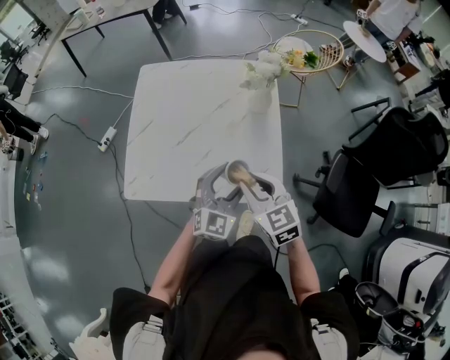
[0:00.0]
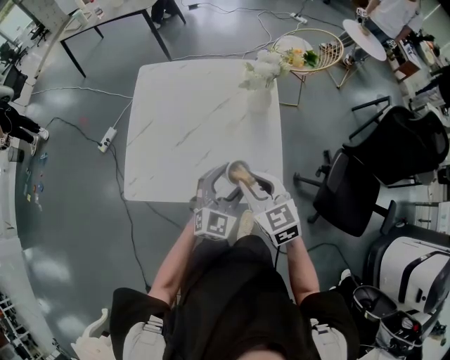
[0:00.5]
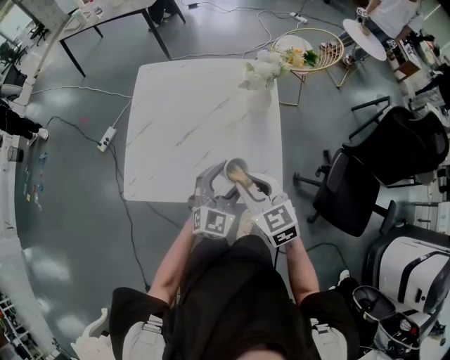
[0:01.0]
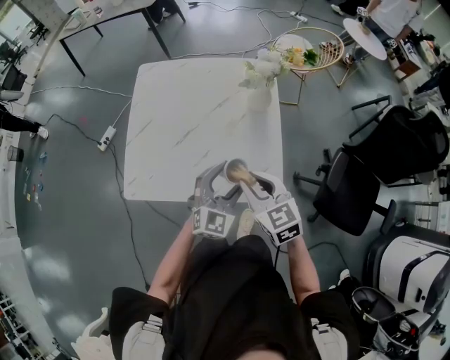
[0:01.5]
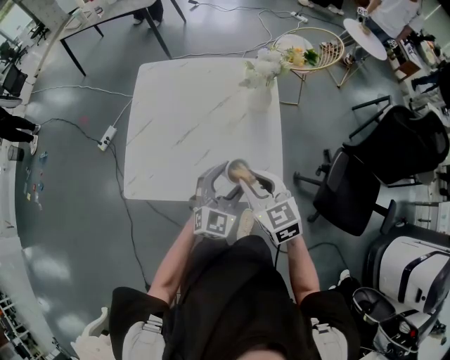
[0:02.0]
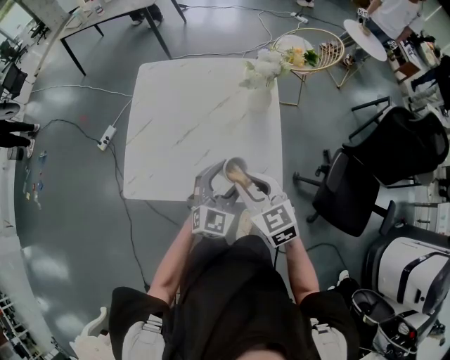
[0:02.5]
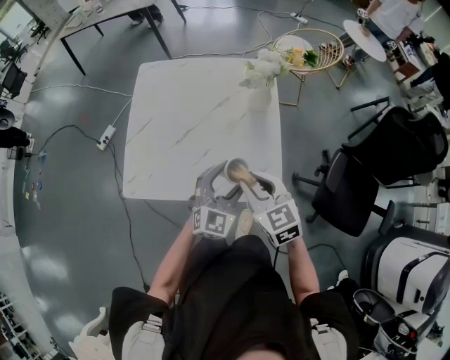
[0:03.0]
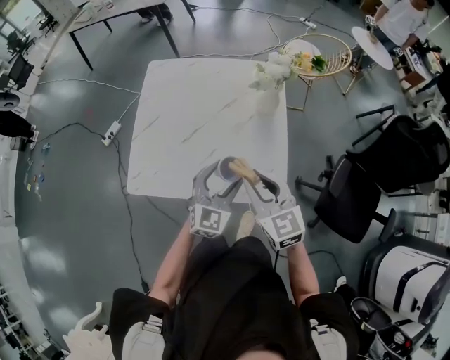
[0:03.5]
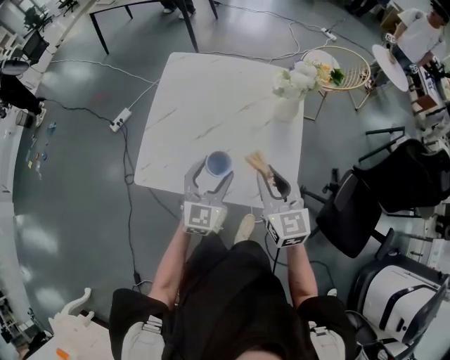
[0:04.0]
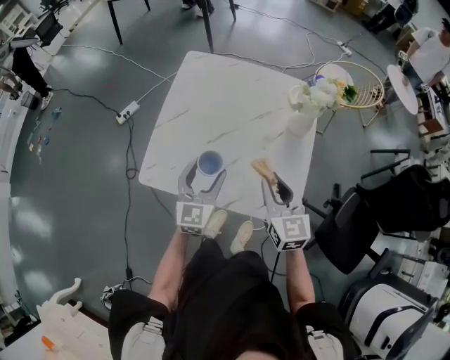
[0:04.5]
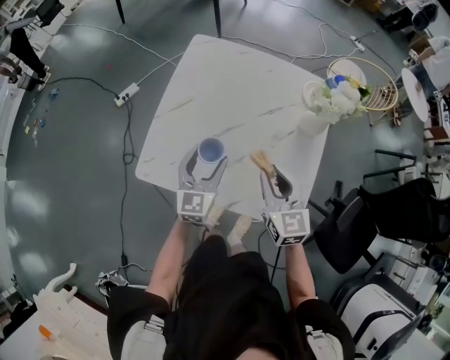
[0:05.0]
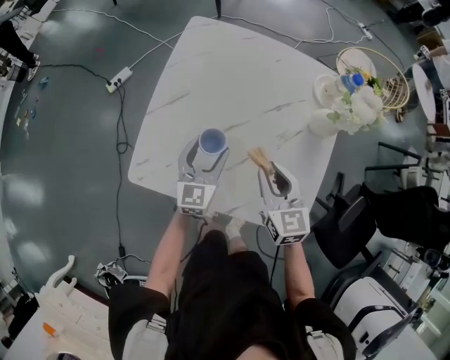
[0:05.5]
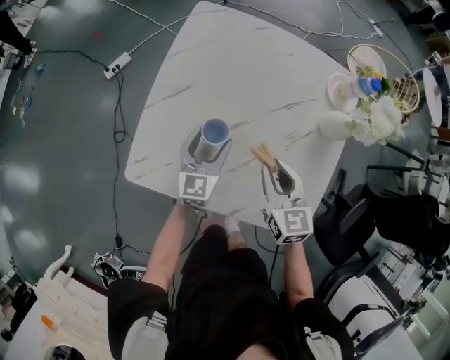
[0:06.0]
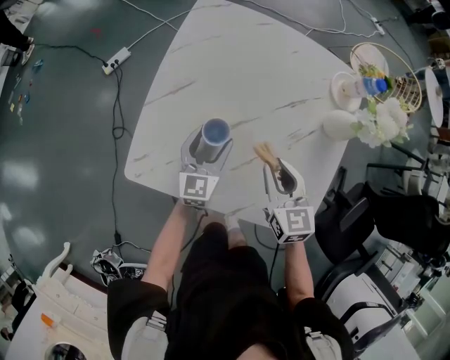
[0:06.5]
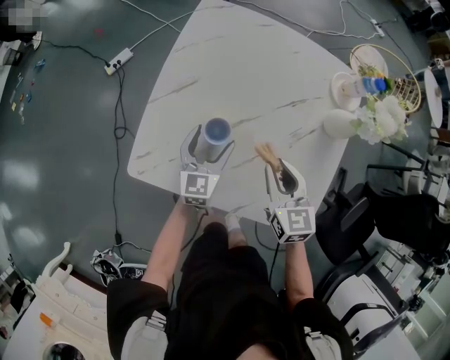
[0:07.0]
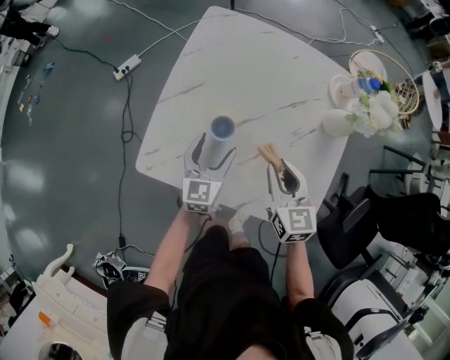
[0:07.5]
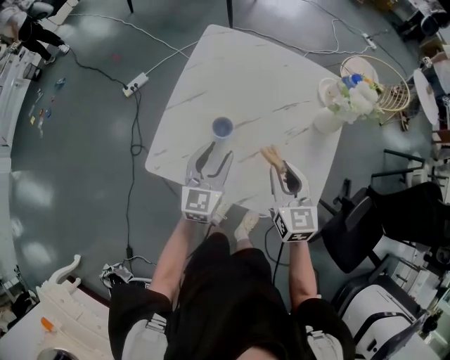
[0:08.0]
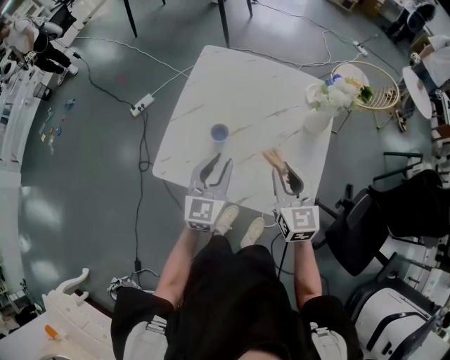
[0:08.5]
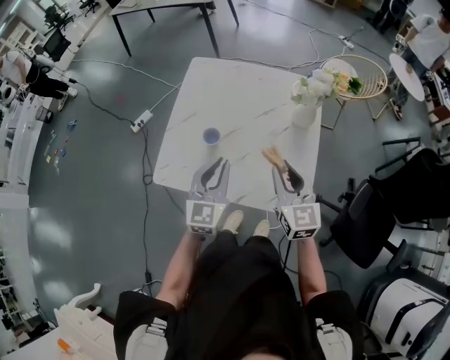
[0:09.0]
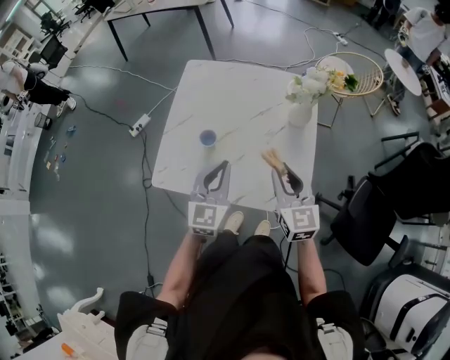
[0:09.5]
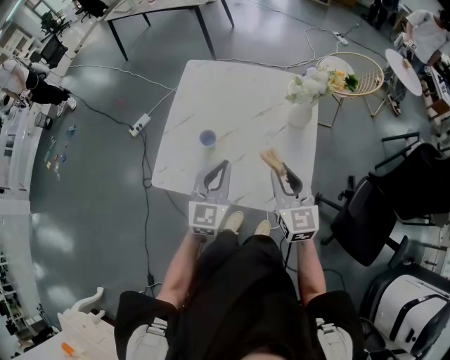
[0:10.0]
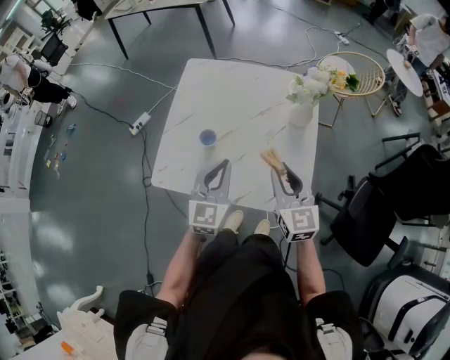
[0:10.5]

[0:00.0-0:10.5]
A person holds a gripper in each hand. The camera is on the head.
0:00.0 to 0:02.0: Both grippers stay about where they are.
0:02.0 to 0:04.0: The left gripper moves to the left, some 10 cm, and swivels roughly 20 degrees.
0:04.0 to 0:06.5: The right gripper travels downward and forward by some 20 cm; the left gripper shifts about 25 cm downward, forward and to the left, and swivels roughly 20 degrees.
0:06.5 to 0:08.5: The grippers both shift upward and backward by roughly 20 cm. The left gripper closes its fingers.
0:08.5 to 0:10.5: The right gripper shifts by about 5 cm; the left gripper shifts roughly 5 cm to the right.

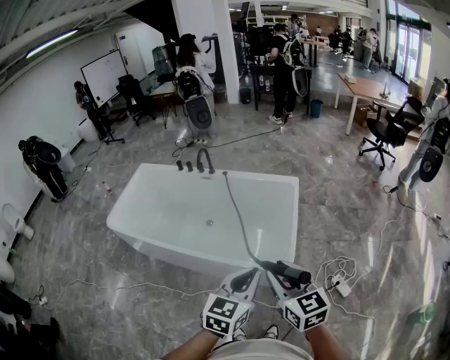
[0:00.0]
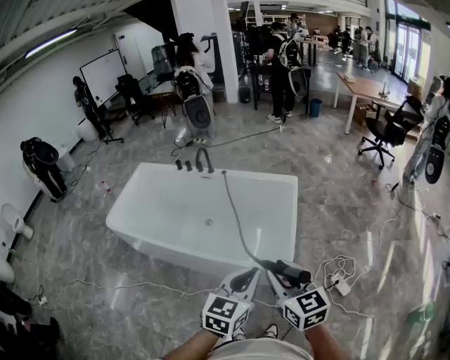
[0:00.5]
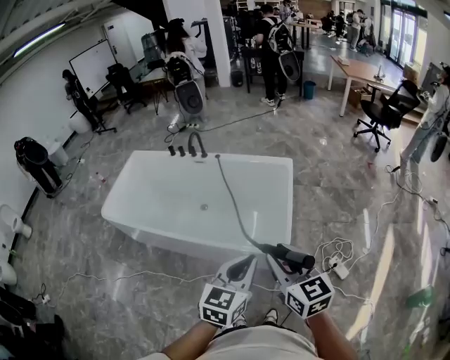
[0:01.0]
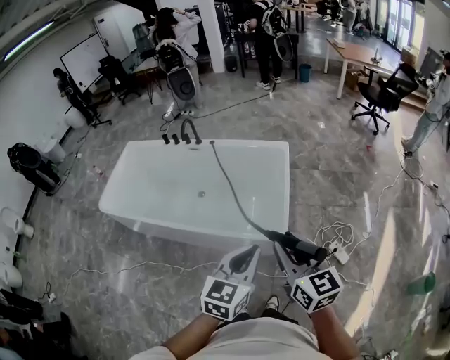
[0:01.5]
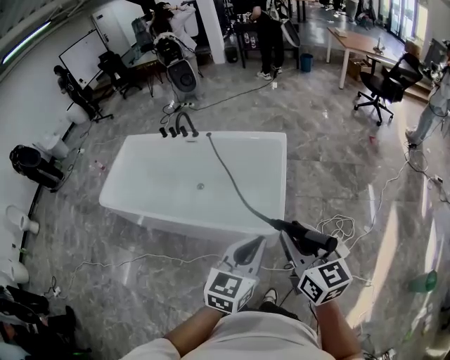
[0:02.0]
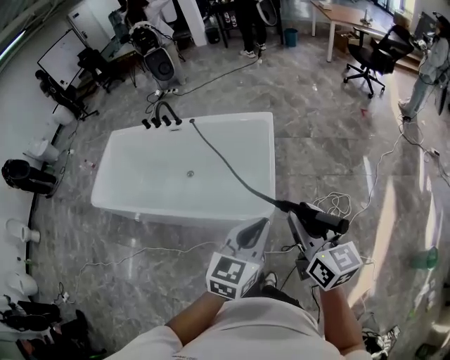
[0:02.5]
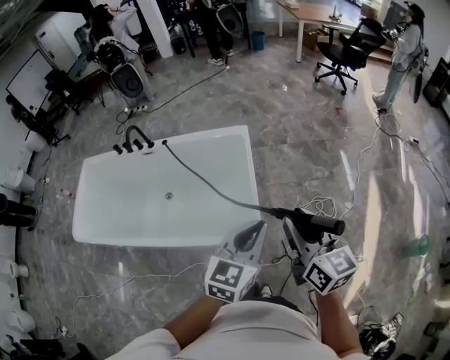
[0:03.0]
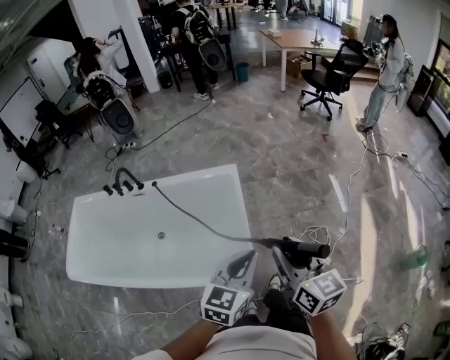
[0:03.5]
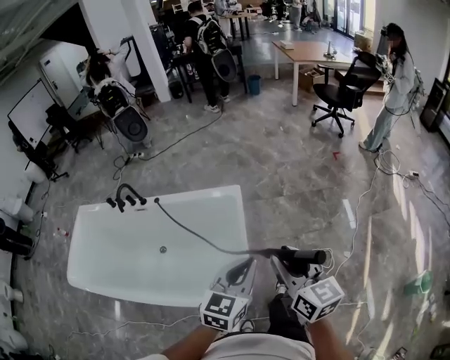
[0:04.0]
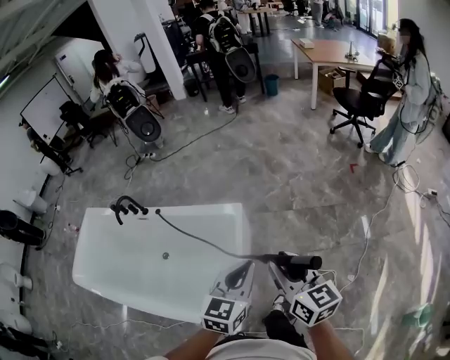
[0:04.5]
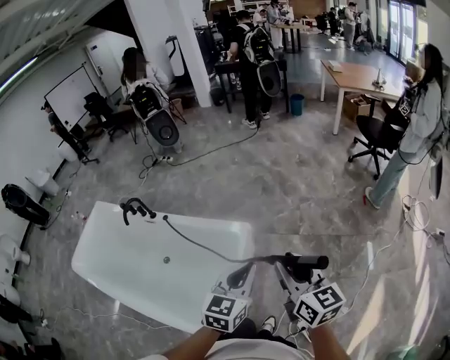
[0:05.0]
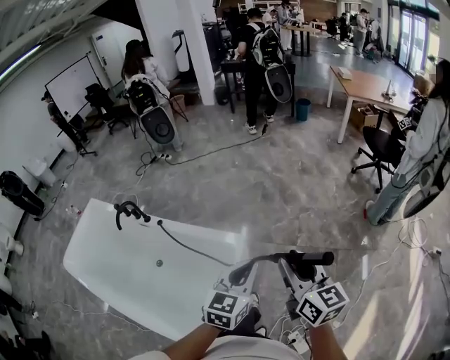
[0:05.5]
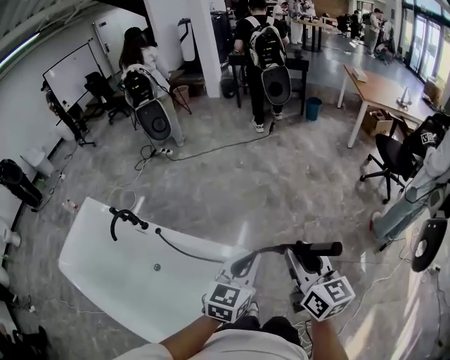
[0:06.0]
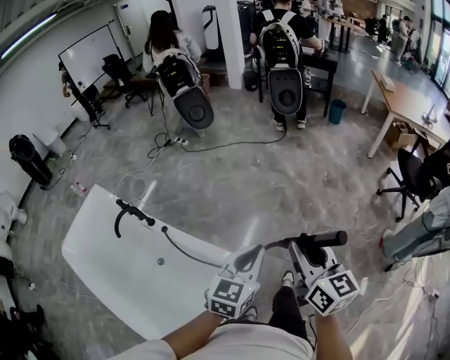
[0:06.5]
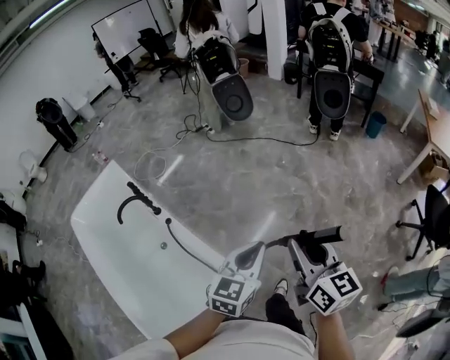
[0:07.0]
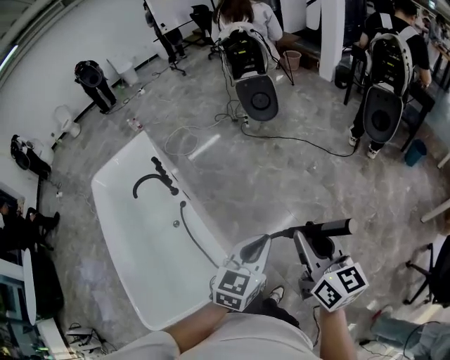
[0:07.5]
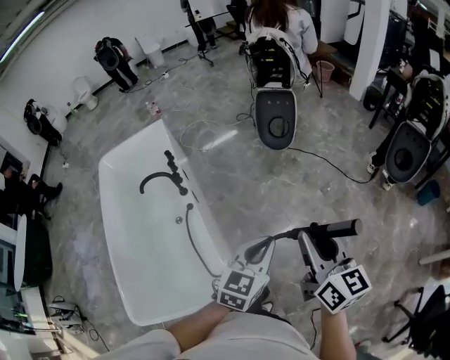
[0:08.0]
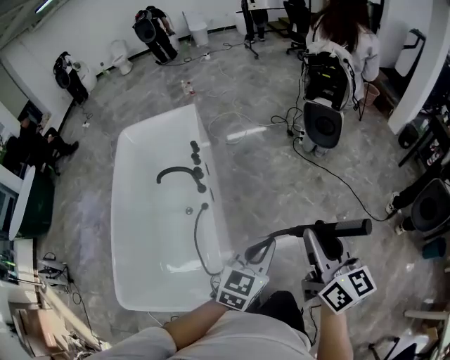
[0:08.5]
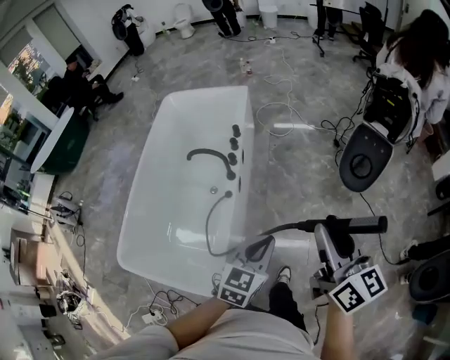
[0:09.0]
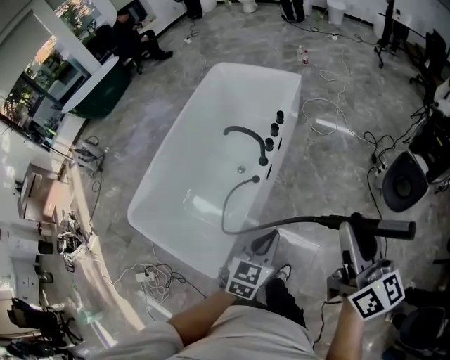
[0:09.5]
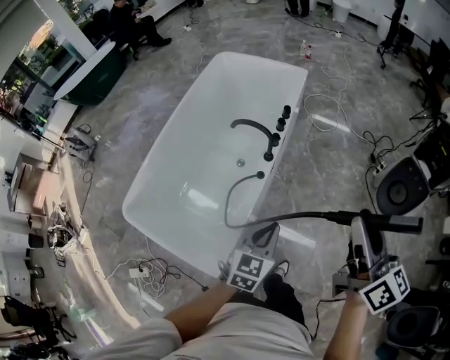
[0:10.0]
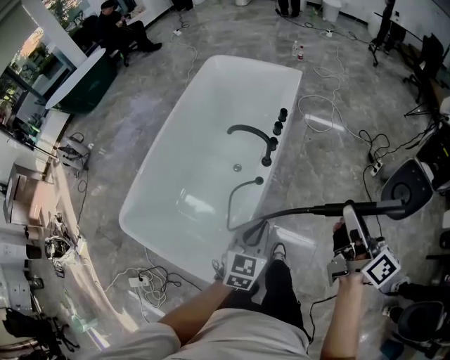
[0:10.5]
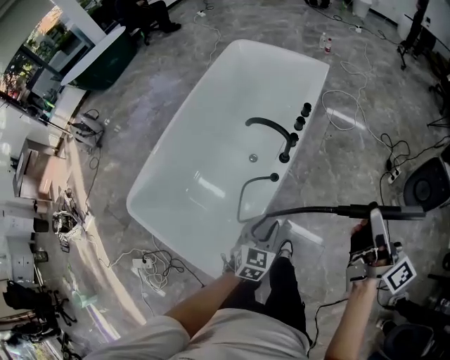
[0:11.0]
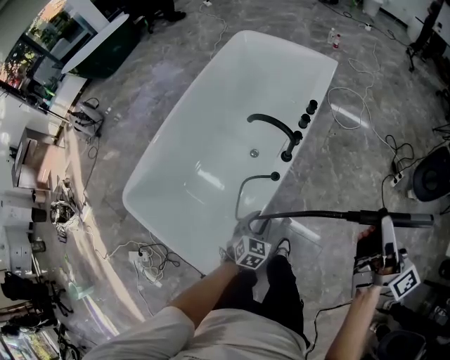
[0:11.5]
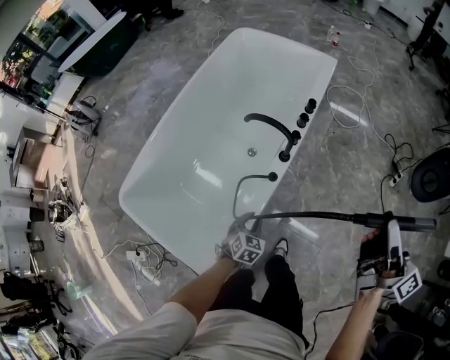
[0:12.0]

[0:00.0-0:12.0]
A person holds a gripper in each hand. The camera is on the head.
0:00.0 to 0:02.0: Both grippers move to the right, about 10 cm.
0:02.0 to 0:04.0: Both grippers move forward, roughly 25 cm.
0:04.0 to 0:06.0: Both grippers are carried forward, some 40 cm.
0:06.0 to 0:08.0: The left gripper ends up some 35 cm from where it was, and rotates some 40 degrees; the right gripper moves some 40 cm, and changes its angle by some 50 degrees.
0:08.0 to 0:10.0: The left gripper changes place by about 25 cm, and rotates some 50 degrees; the right gripper ends up approximately 30 cm from where it was, and rotates some 50 degrees.
0:10.0 to 0:12.0: The left gripper travels downward by some 30 cm, changes its angle by roughly 30 degrees, and opens up; the right gripper is displaced forward and downward by roughly 15 cm, and swivels roughly 40 degrees.

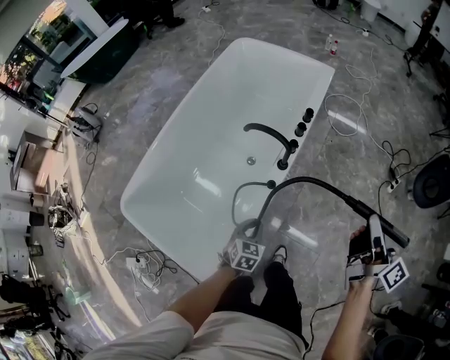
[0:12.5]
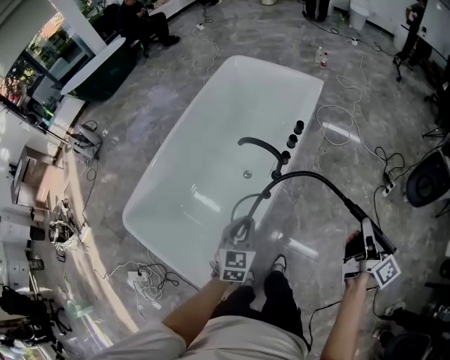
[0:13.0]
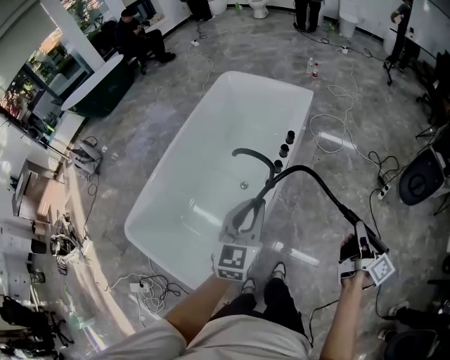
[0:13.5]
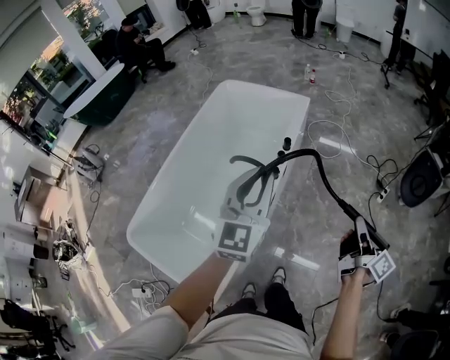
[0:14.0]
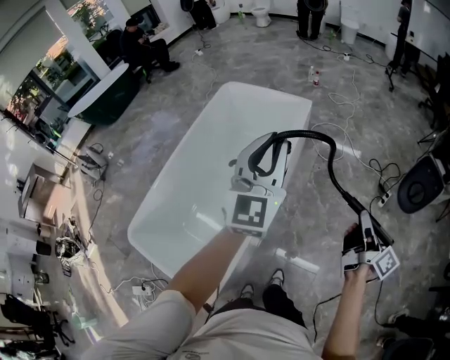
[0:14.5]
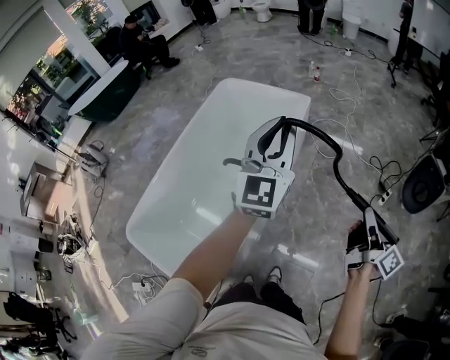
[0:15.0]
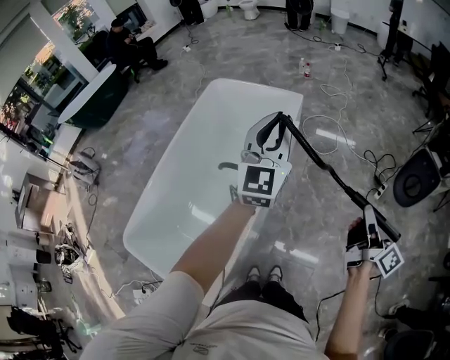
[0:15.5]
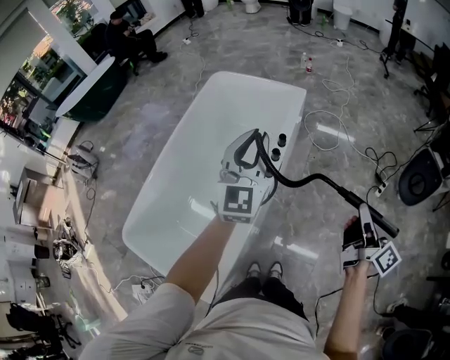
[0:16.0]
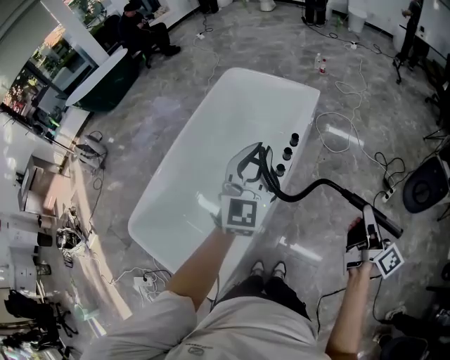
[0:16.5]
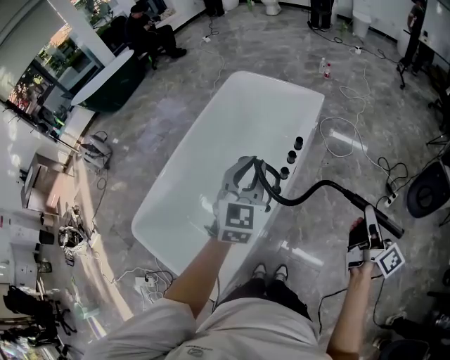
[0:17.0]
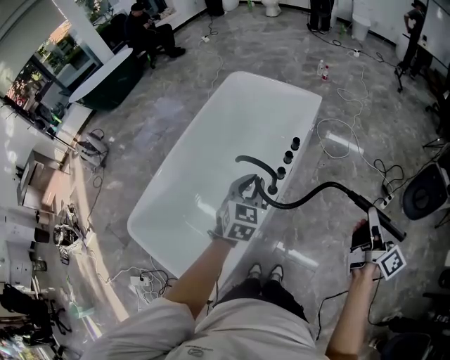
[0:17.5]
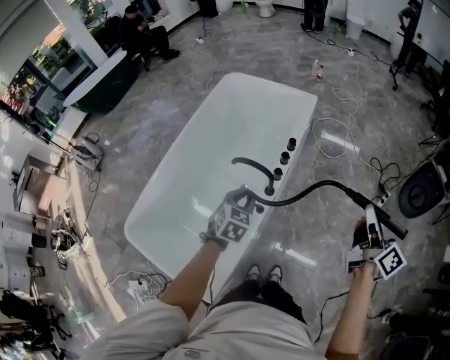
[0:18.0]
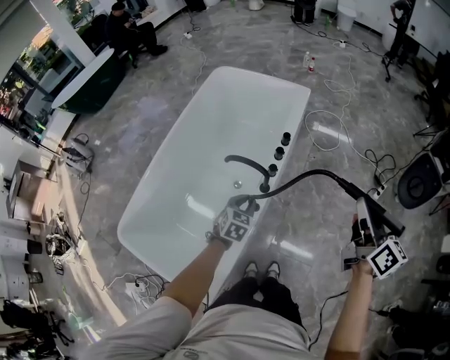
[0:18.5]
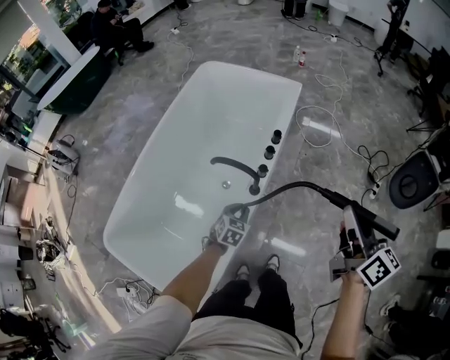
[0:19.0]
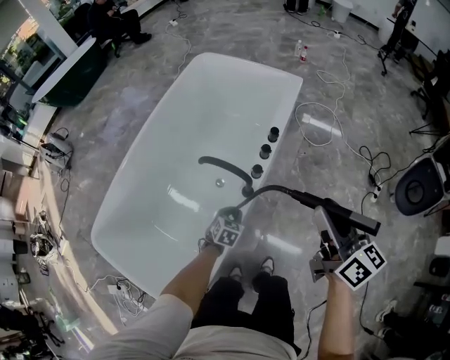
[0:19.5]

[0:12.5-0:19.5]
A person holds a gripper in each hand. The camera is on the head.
0:12.5 to 0:14.5: The left gripper is displaced upward by about 50 cm, and points its fingers roughly 60 degrees further upward; the right gripper goes roughly 10 cm to the right.
0:14.5 to 0:16.0: The left gripper moves forward and downward, approximately 10 cm.
0:16.0 to 0:17.5: The left gripper travels downward and backward by approximately 20 cm, and angles its fingers downward, by approximately 30 degrees.
0:17.5 to 0:19.5: The left gripper heads downward, covering some 40 cm, and swivels roughly 30 degrees, while the right gripper goes about 15 cm to the left, forward and downward, and turns by roughly 30 degrees.
